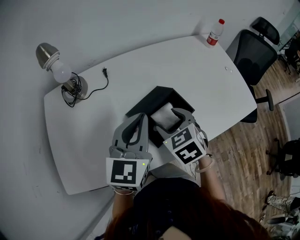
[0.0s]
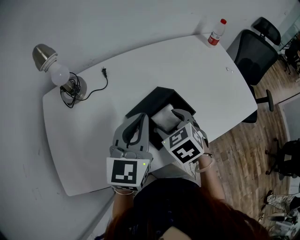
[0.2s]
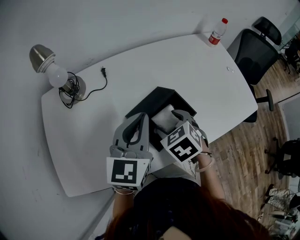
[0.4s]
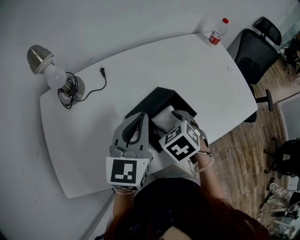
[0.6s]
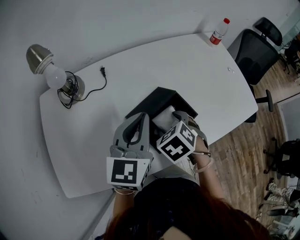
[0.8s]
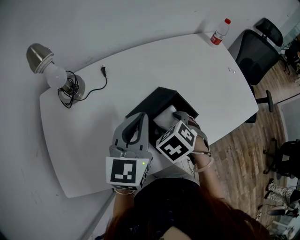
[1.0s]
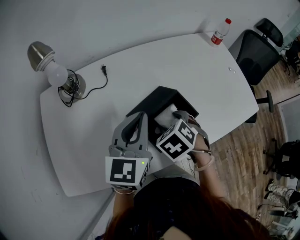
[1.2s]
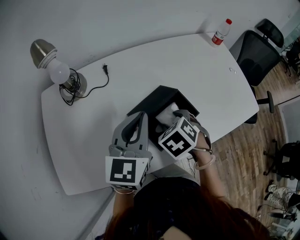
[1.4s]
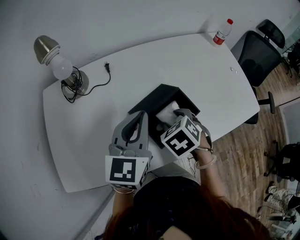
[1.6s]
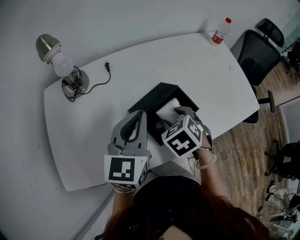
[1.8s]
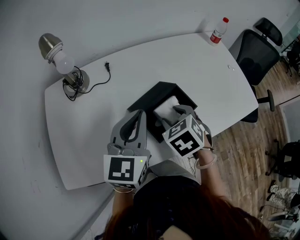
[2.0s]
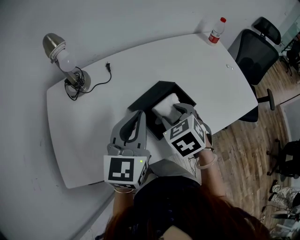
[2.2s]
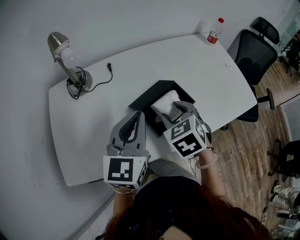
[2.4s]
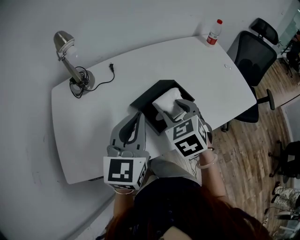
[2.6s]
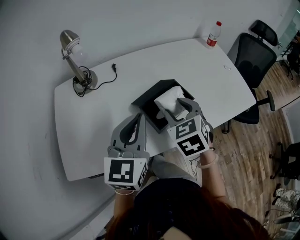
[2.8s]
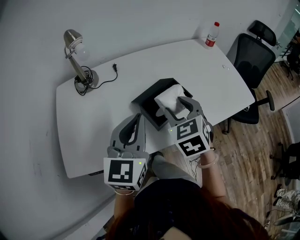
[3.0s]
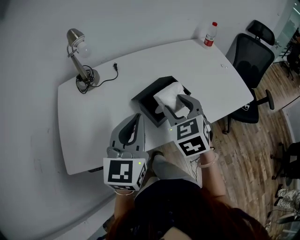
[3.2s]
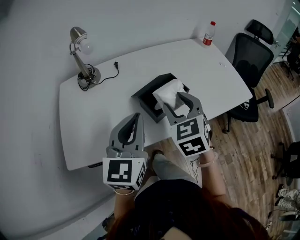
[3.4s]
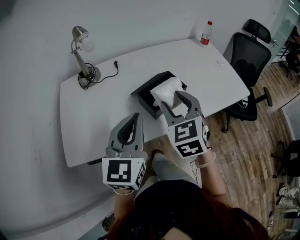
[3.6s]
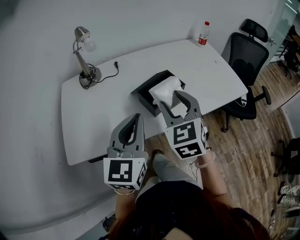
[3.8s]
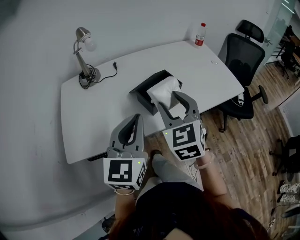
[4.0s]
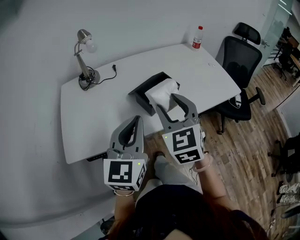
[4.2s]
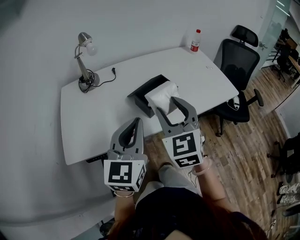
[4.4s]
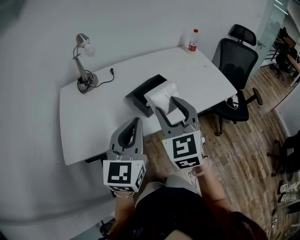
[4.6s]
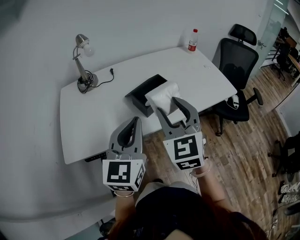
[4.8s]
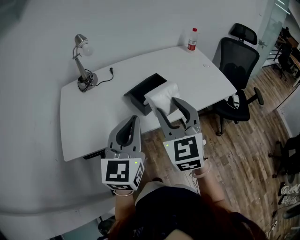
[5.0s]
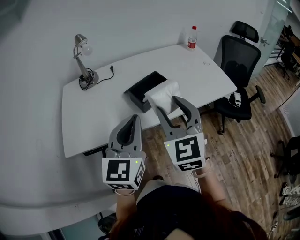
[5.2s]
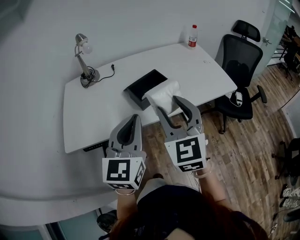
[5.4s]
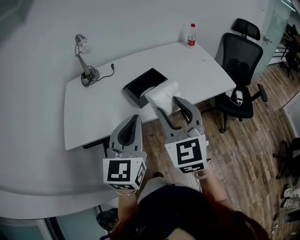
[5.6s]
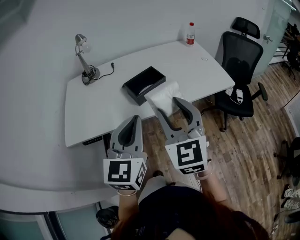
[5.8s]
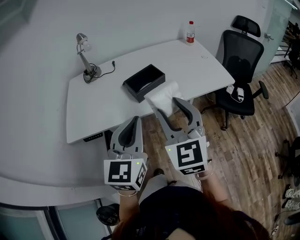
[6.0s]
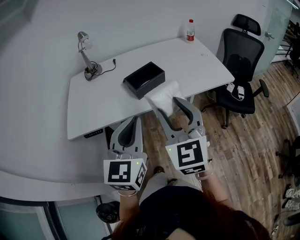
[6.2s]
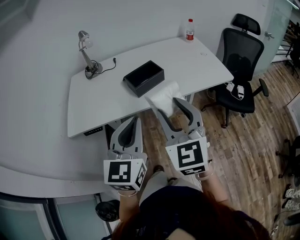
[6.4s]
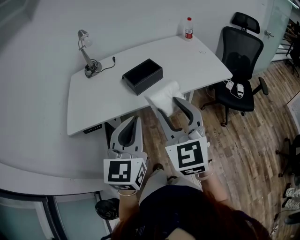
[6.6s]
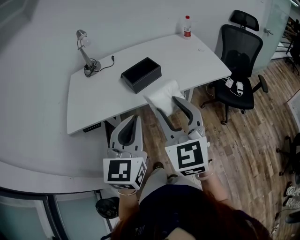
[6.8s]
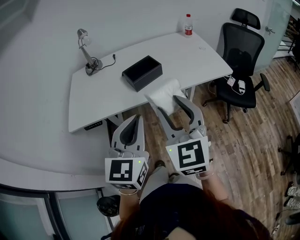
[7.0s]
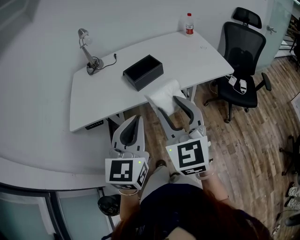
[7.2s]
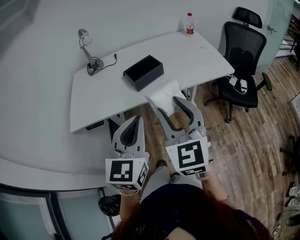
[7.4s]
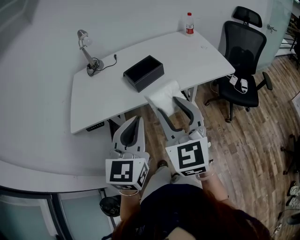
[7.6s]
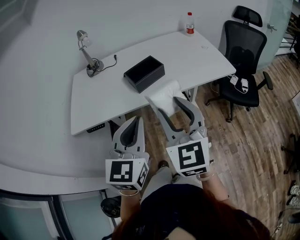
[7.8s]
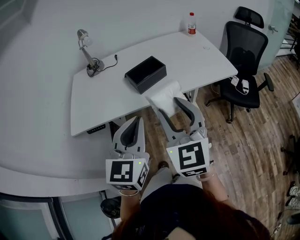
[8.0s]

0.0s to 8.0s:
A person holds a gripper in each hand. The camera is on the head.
1.6s to 3.2s: The left gripper goes about 10 cm backward. The right gripper heads upward and backward, covering some 15 cm, and tilts its fingers approximately 30 degrees upward.
3.2s to 4.8s: The right gripper heads backward and upward, covering roughly 15 cm, and turns by roughly 20 degrees. Meanwhile the left gripper heads backward, covering roughly 10 cm.
4.8s to 6.4s: Both grippers travel together backward and to the right, roughly 15 cm.
6.4s to 8.0s: There are only small adjustments of the grippers.

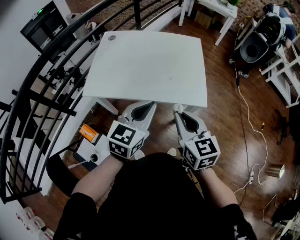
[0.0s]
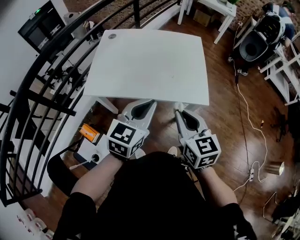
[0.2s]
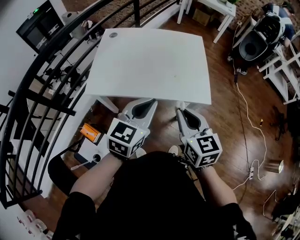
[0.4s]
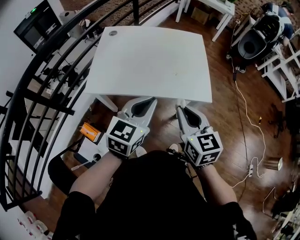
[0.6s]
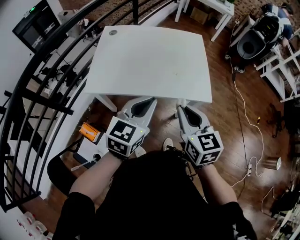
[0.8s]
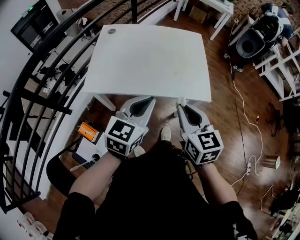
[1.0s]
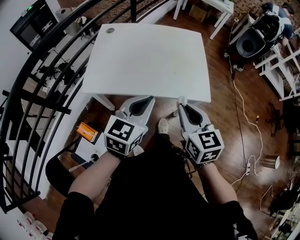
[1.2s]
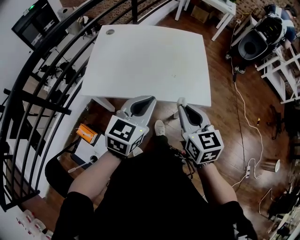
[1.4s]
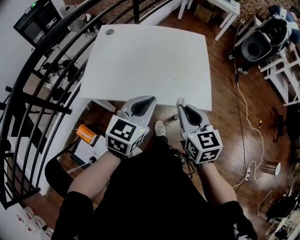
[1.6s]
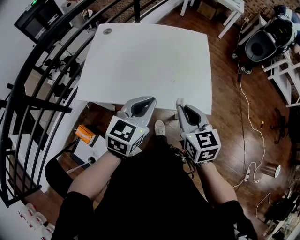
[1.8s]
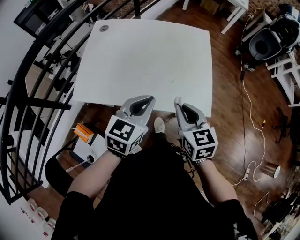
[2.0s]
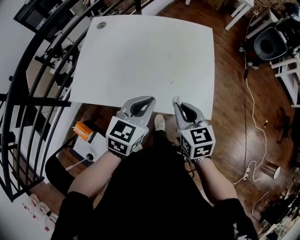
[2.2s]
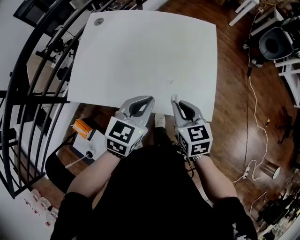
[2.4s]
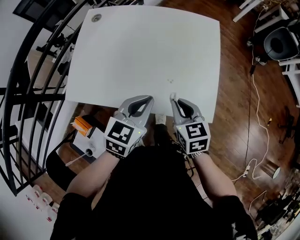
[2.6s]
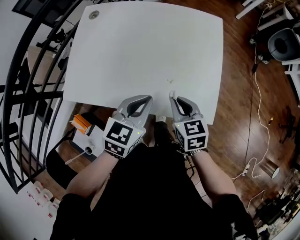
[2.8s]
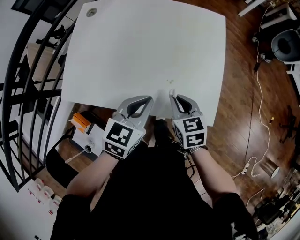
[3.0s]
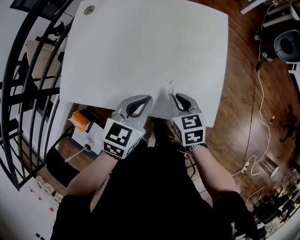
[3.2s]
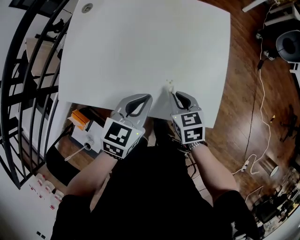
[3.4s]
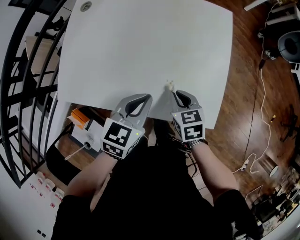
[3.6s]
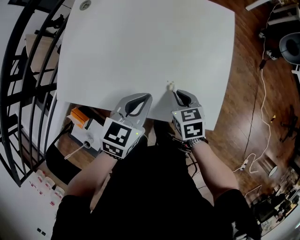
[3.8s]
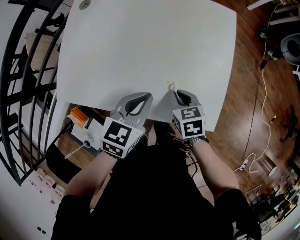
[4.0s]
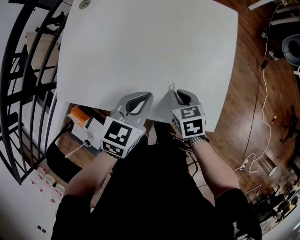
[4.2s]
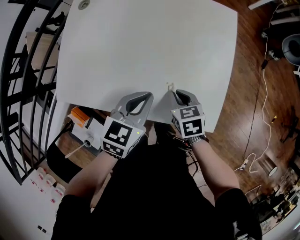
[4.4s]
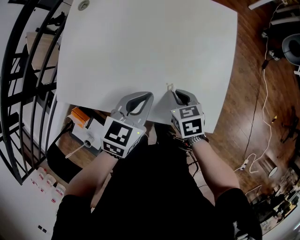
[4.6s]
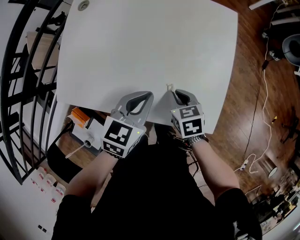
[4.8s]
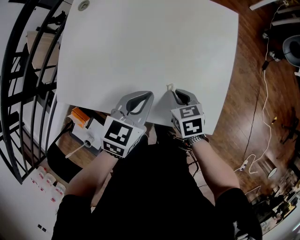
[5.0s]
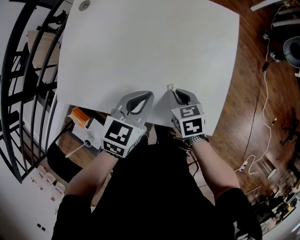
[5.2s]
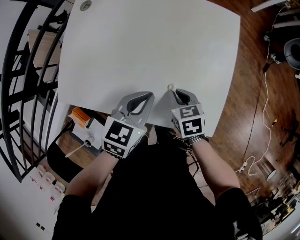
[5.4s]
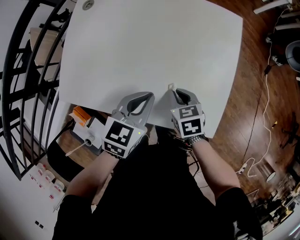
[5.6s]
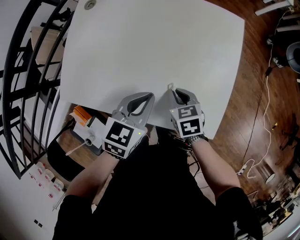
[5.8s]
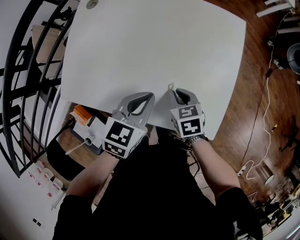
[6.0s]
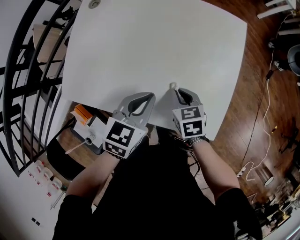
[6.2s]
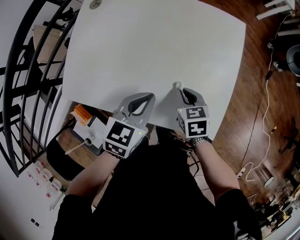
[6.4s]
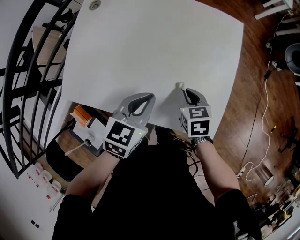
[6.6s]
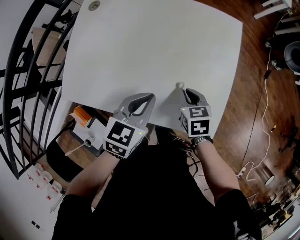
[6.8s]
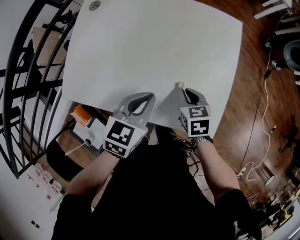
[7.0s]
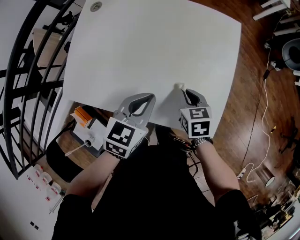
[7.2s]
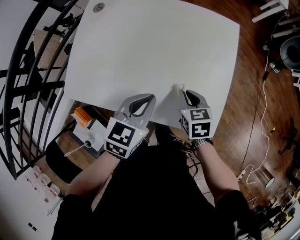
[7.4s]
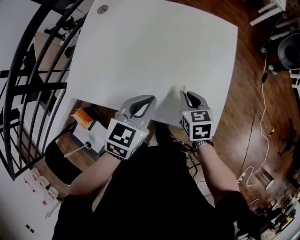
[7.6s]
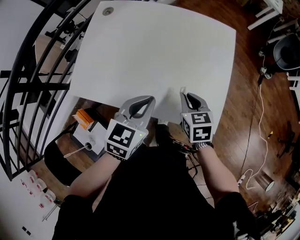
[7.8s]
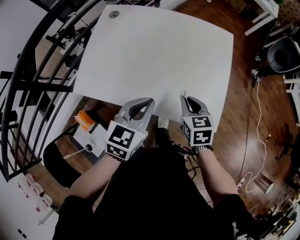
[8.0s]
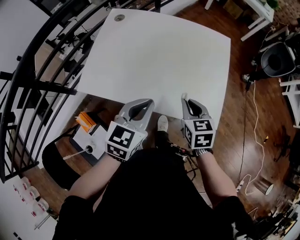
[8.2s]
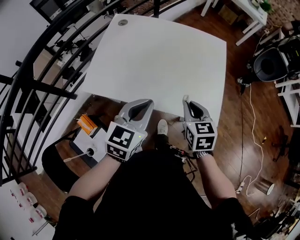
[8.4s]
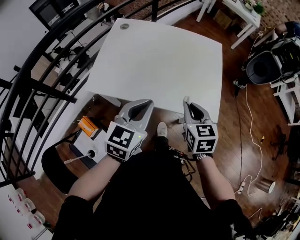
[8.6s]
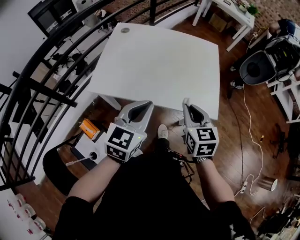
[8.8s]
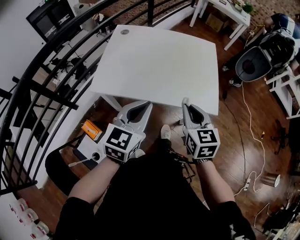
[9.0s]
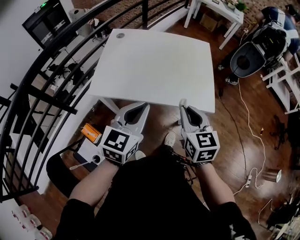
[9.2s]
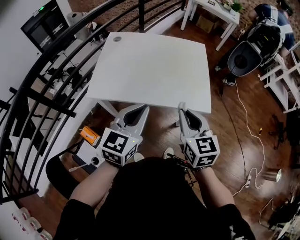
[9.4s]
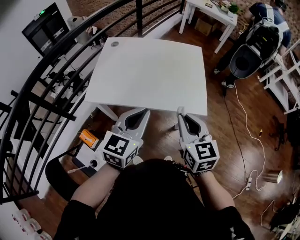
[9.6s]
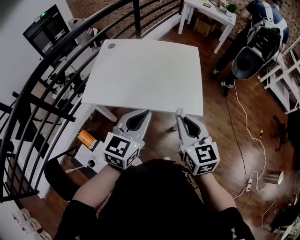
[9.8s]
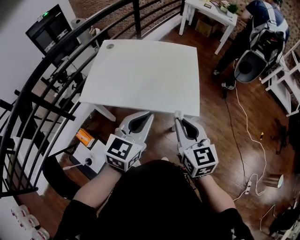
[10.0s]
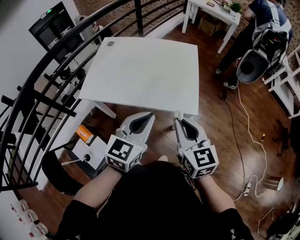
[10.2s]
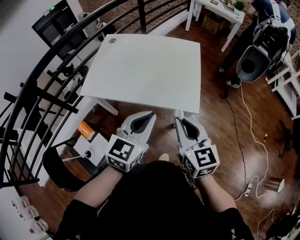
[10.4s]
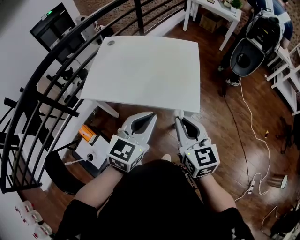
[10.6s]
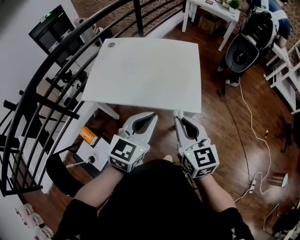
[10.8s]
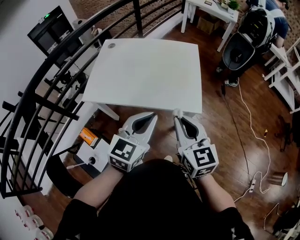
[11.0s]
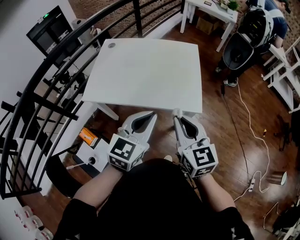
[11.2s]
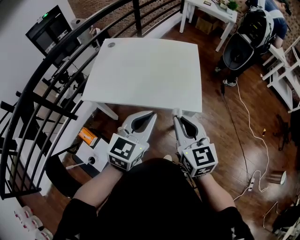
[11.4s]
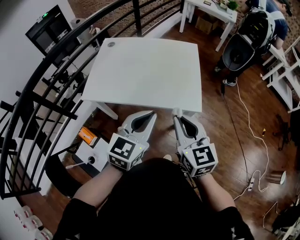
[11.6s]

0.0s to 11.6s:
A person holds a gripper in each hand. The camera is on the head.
0.0s to 1.4s: The right gripper moves roughly 5 cm, while the left gripper moves about 5 cm.
1.4s to 2.8s: The right gripper heads downward and forward, covering some 25 cm, and changes its angle by roughly 20 degrees. Meanwhile the left gripper heads forward and downward, covering approximately 20 cm.
2.8s to 4.4s: The left gripper changes place by roughly 5 cm. The right gripper goes about 10 cm downward.
4.4s to 7.2s: The grippers stay close to where they were, moving slightly.
7.2s to 8.8s: The left gripper shifts about 25 cm backward, upward and to the left, and rotates some 20 degrees, while the right gripper goes about 25 cm backward and upward, and turns by approximately 30 degrees.
8.8s to 10.2s: The right gripper travels to the right, backward and upward by some 15 cm. The left gripper is displaced to the right by some 15 cm.
10.2s to 11.6s: There are only small adjustments of the grippers.

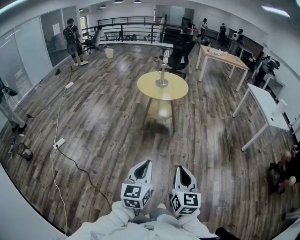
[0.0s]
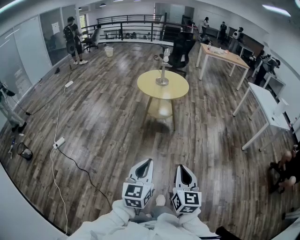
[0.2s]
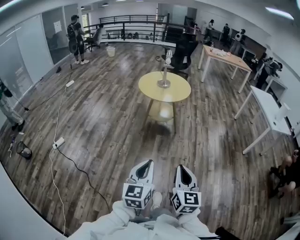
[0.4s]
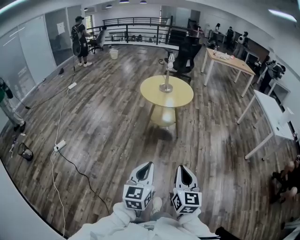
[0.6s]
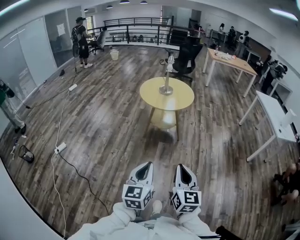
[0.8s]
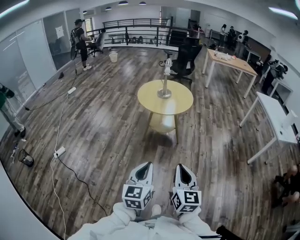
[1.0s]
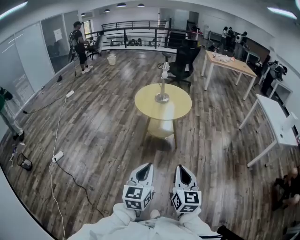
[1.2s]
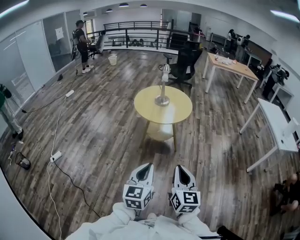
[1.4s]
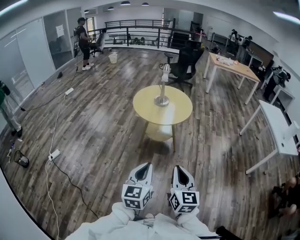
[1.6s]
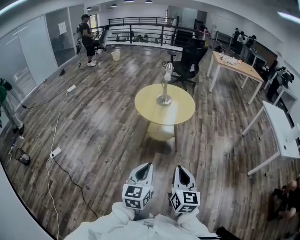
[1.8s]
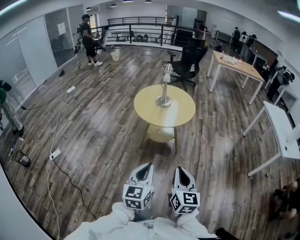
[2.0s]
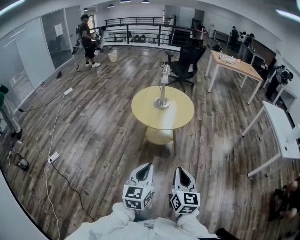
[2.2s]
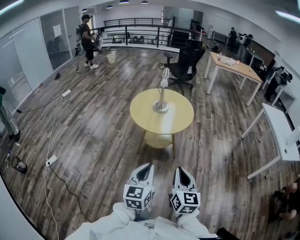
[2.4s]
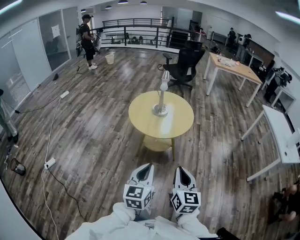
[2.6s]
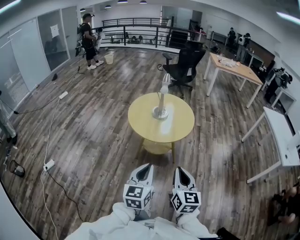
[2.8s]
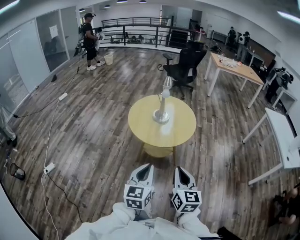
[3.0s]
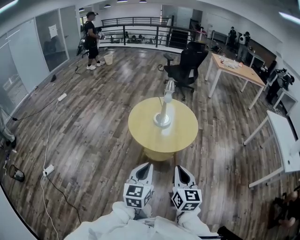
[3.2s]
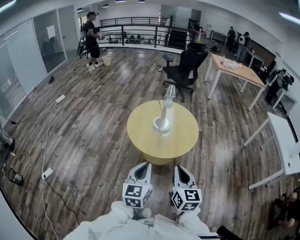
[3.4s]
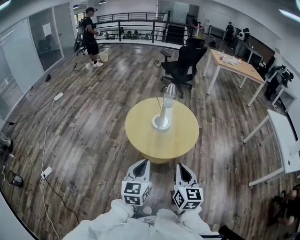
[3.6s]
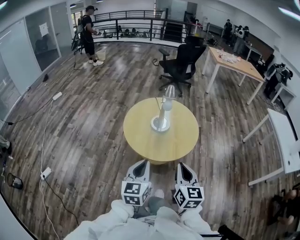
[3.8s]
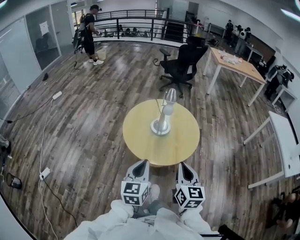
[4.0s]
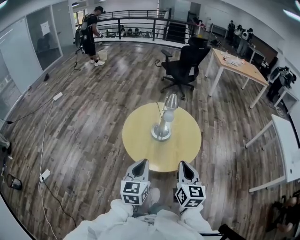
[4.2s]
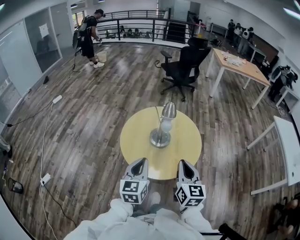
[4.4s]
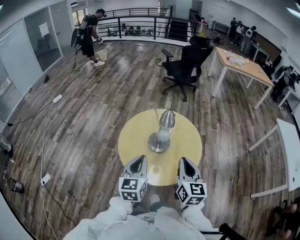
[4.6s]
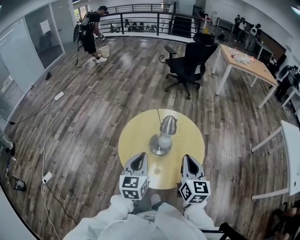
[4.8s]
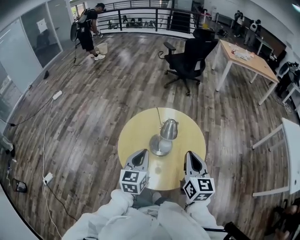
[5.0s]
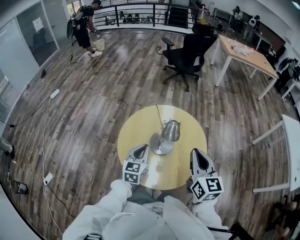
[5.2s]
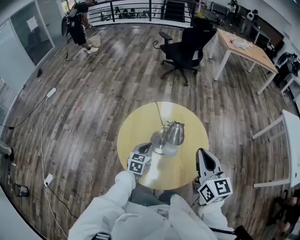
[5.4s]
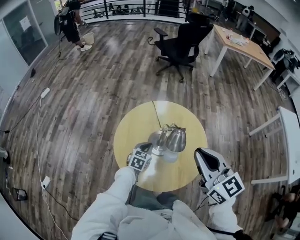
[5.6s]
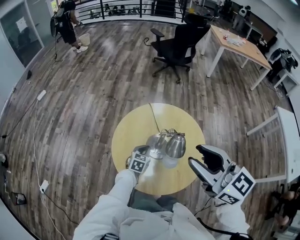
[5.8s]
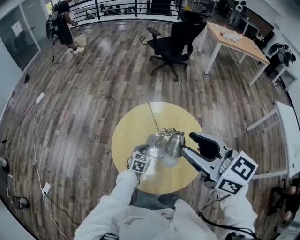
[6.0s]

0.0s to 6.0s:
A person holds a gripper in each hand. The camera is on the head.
0.0s to 1.6s: Both grippers move forward, some 30 cm.
1.6s to 3.0s: The two grippers go roughly 25 cm forward.
3.0s to 4.4s: The two grippers go some 30 cm forward.
4.4s to 6.0s: The right gripper moves forward and upward, about 25 cm, turns by roughly 30 degrees, and opens its fingers. The left gripper shifts roughly 35 cm forward and downward, and swivels approximately 30 degrees.
